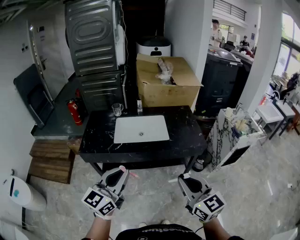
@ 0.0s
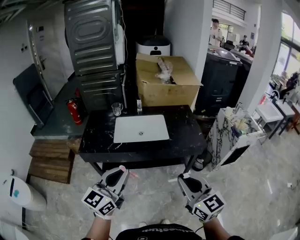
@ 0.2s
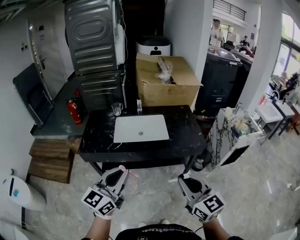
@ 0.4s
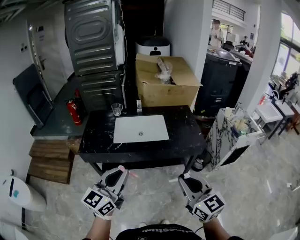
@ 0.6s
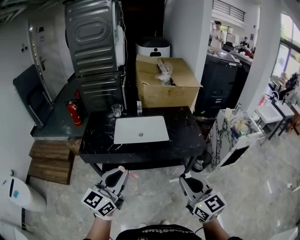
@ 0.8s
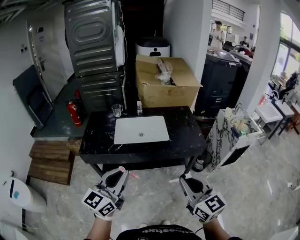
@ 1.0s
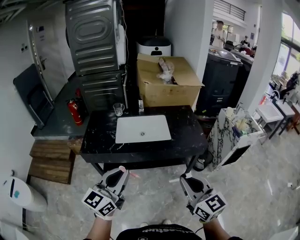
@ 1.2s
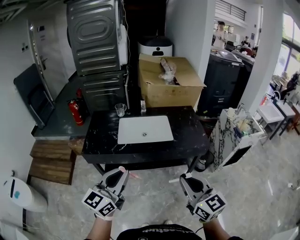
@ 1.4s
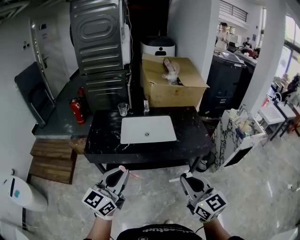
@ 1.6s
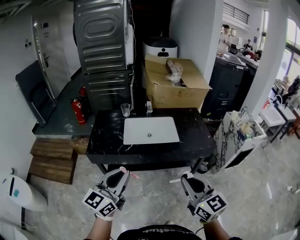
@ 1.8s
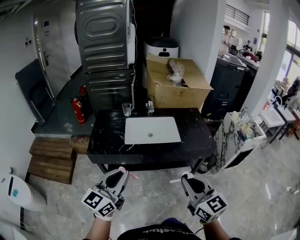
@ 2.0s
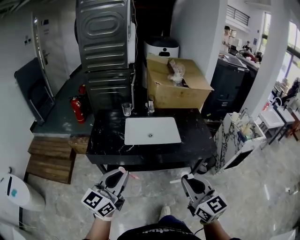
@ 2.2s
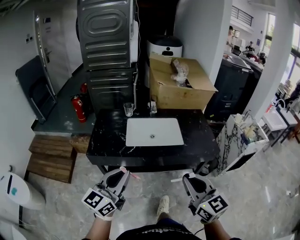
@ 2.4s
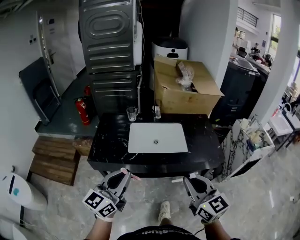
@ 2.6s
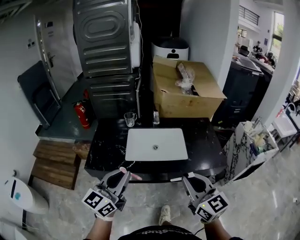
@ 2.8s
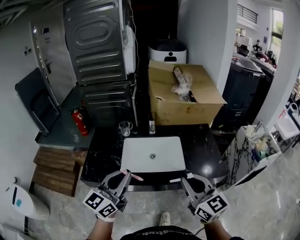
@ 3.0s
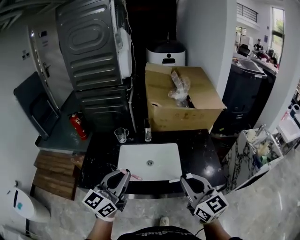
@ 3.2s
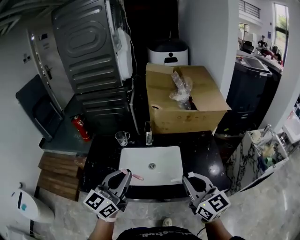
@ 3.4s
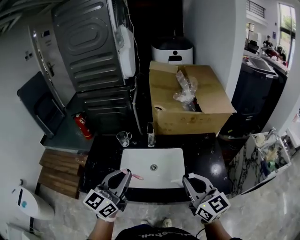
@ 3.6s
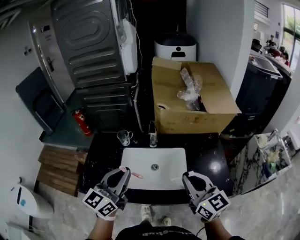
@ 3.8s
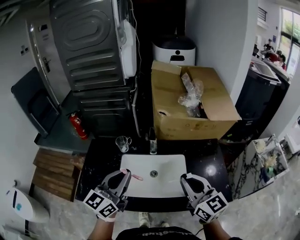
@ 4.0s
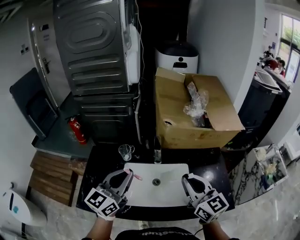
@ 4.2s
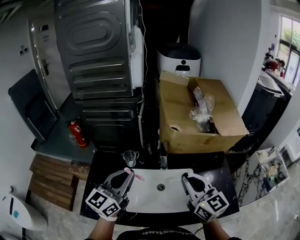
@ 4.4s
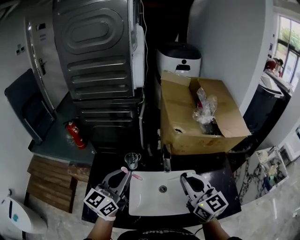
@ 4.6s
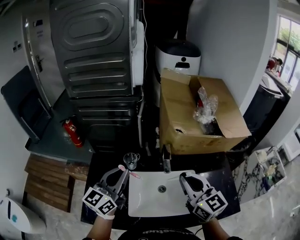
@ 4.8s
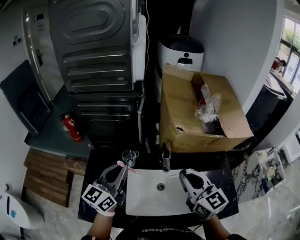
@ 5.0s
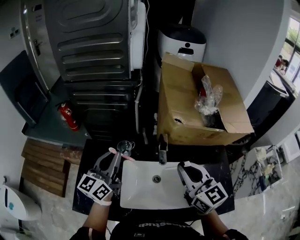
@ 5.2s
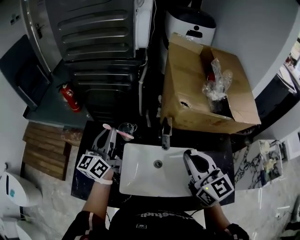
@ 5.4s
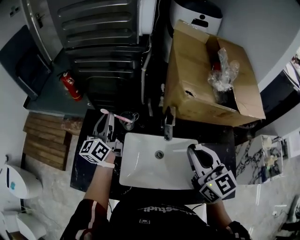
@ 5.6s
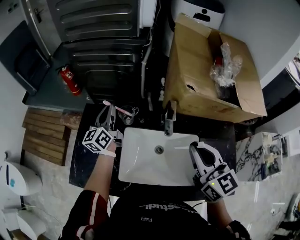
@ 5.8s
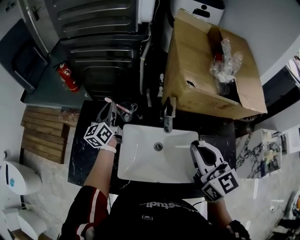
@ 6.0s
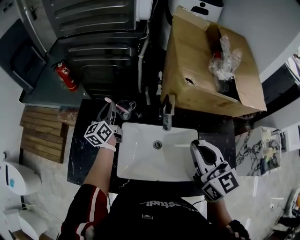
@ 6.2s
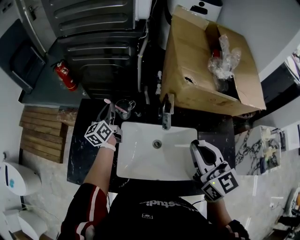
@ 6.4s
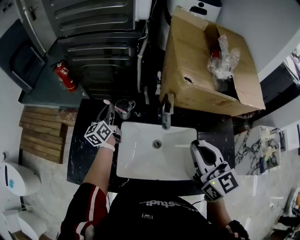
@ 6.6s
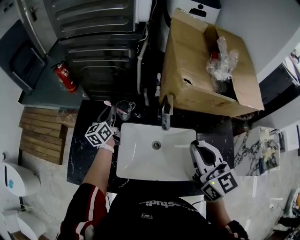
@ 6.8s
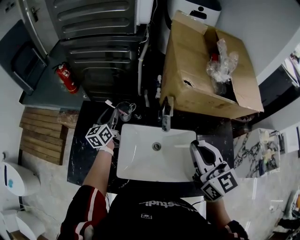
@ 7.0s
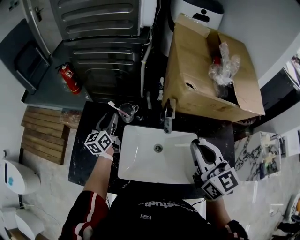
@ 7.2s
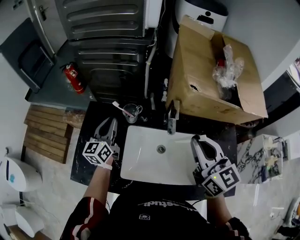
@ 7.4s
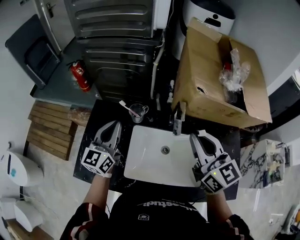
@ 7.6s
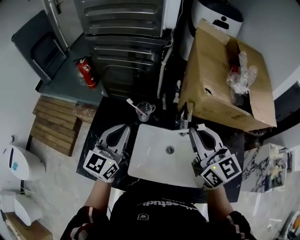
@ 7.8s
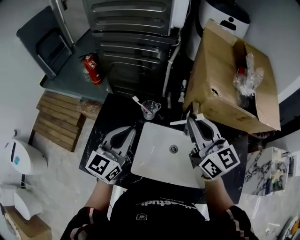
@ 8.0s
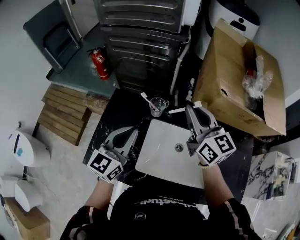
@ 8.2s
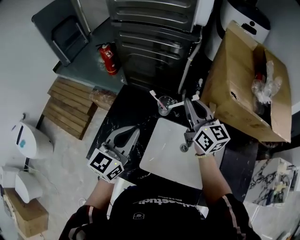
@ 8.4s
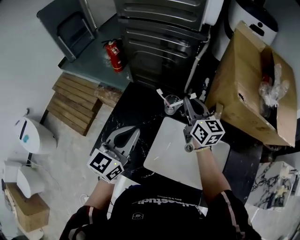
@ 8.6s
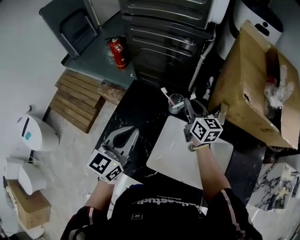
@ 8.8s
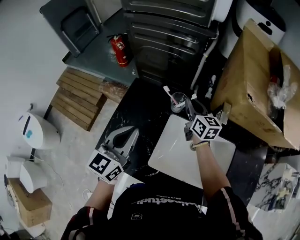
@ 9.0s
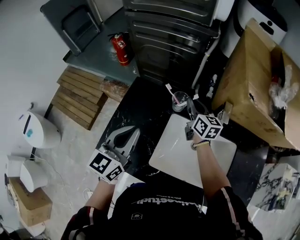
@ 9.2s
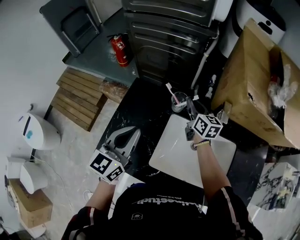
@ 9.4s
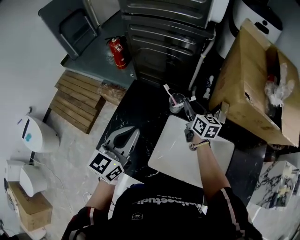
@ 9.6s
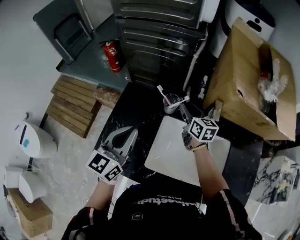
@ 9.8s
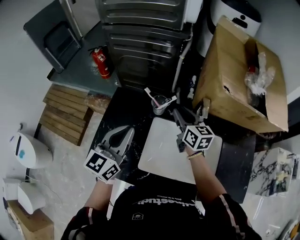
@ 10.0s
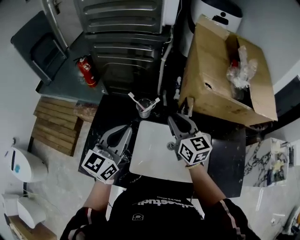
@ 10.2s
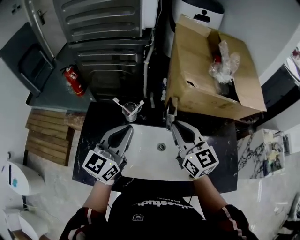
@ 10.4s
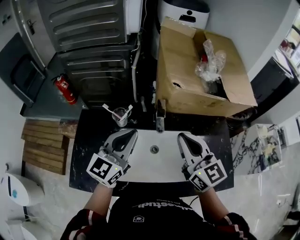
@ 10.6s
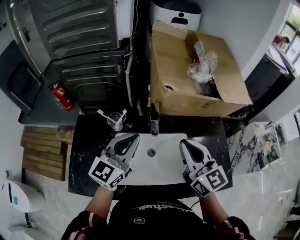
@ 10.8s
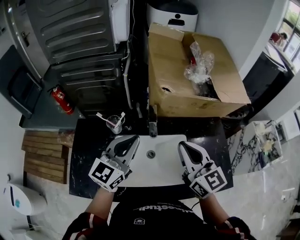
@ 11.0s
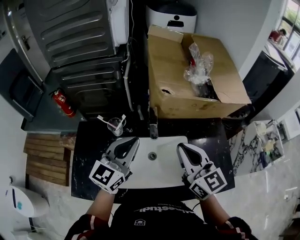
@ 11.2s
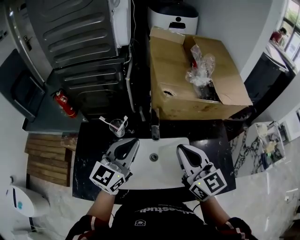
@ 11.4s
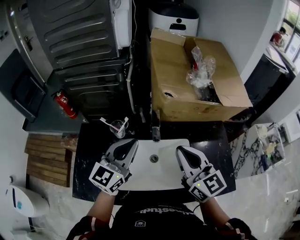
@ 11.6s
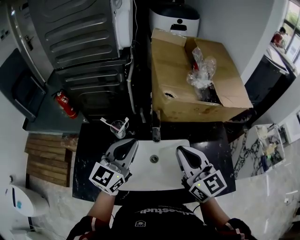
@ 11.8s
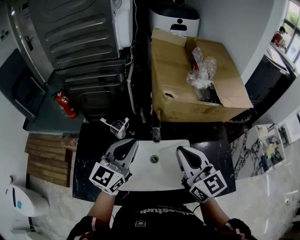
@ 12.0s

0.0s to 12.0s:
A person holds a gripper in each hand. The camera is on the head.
0.0s to 1.6s: The grippers both shift to the left by roughly 5 cm.
1.6s to 3.0s: Both grippers travel together forward, approximately 25 cm.
3.0s to 4.4s: The grippers both shift forward by some 30 cm.
4.4s to 6.0s: The right gripper shifts about 10 cm forward and downward. Meanwhile the left gripper is displaced forward and downward by some 30 cm, and turns by some 30 degrees.
6.0s to 7.6s: The left gripper is displaced backward and upward by some 15 cm, rotates about 20 degrees, and opens, then closes once more. The right gripper moves roughly 5 cm.
7.6s to 9.0s: The left gripper heads to the left and backward, covering some 10 cm. The right gripper heads forward, downward and to the left, covering about 30 cm.
9.0s to 10.4s: The right gripper heads backward, upward and to the right, covering some 25 cm, turns by roughly 20 degrees, and opens and closes again, while the left gripper shifts some 15 cm to the right.
10.4s to 12.0s: The left gripper goes about 10 cm to the right, while the right gripper shifts roughly 10 cm to the right and backward.

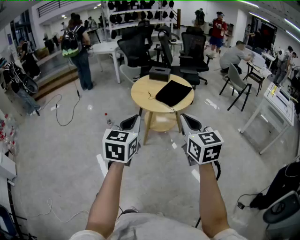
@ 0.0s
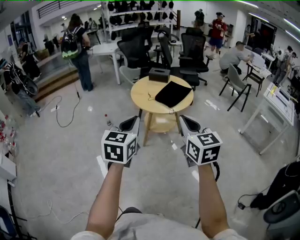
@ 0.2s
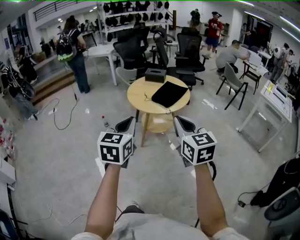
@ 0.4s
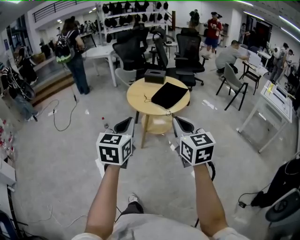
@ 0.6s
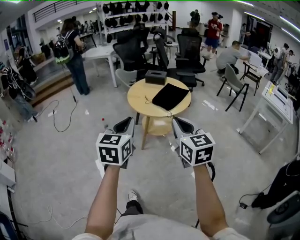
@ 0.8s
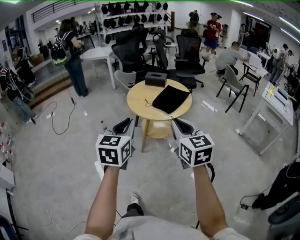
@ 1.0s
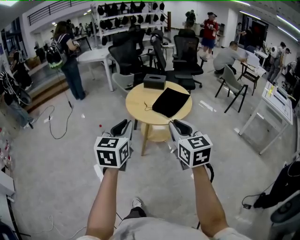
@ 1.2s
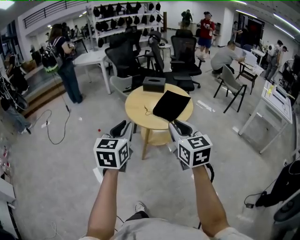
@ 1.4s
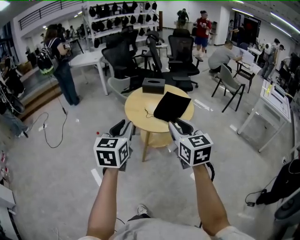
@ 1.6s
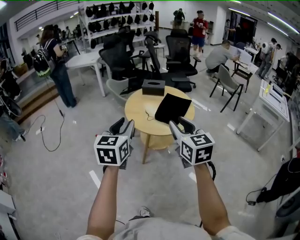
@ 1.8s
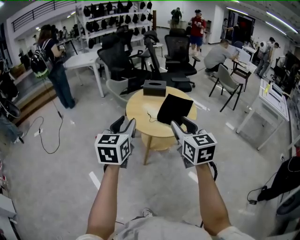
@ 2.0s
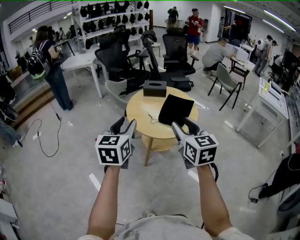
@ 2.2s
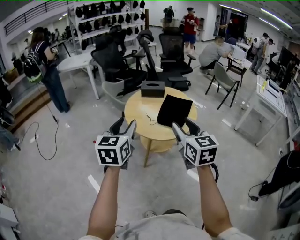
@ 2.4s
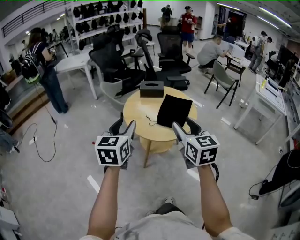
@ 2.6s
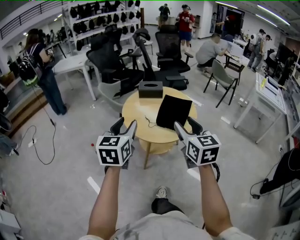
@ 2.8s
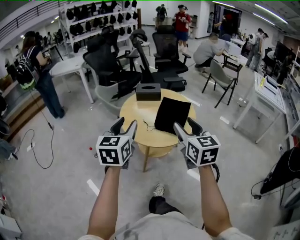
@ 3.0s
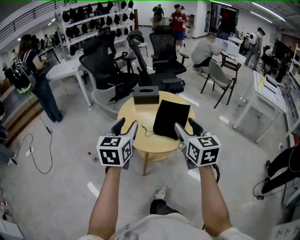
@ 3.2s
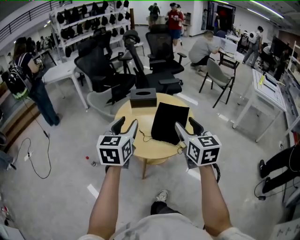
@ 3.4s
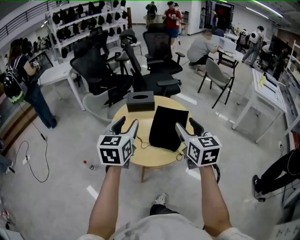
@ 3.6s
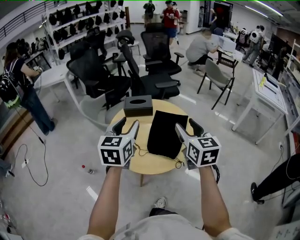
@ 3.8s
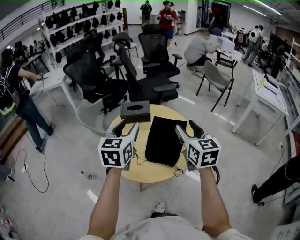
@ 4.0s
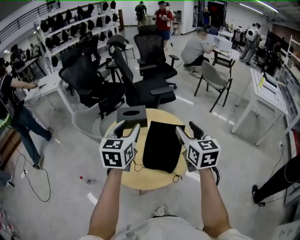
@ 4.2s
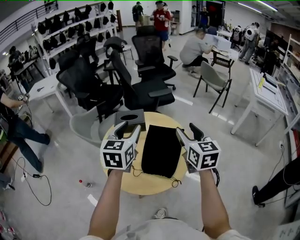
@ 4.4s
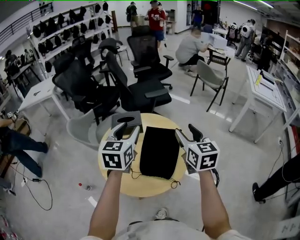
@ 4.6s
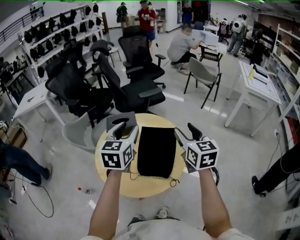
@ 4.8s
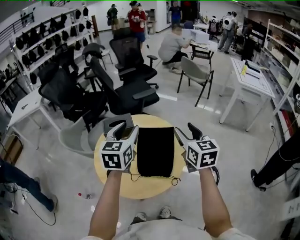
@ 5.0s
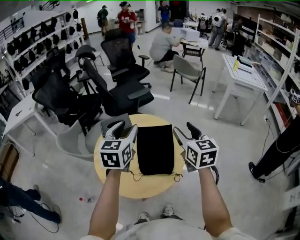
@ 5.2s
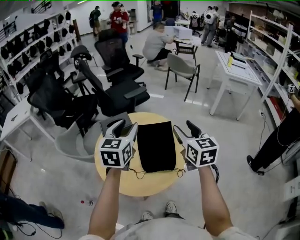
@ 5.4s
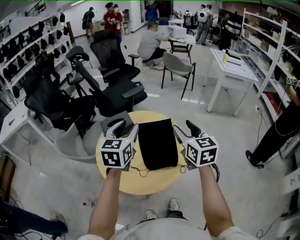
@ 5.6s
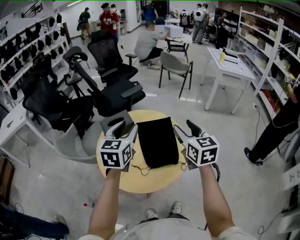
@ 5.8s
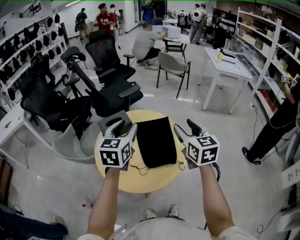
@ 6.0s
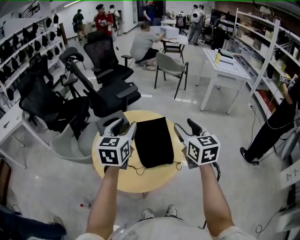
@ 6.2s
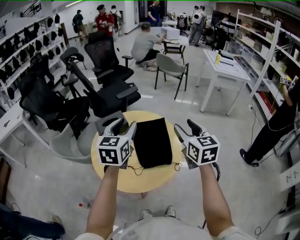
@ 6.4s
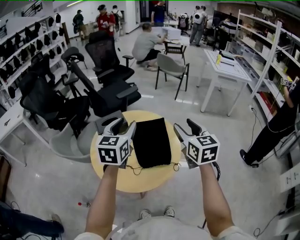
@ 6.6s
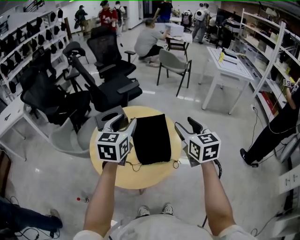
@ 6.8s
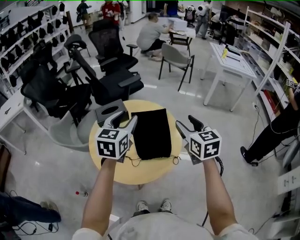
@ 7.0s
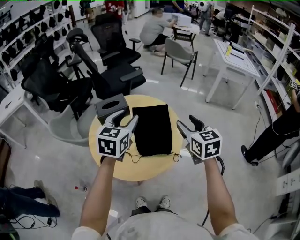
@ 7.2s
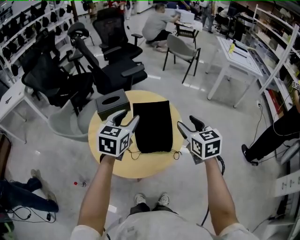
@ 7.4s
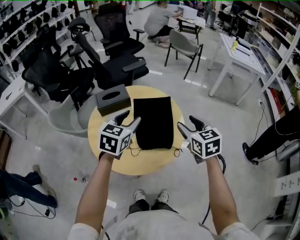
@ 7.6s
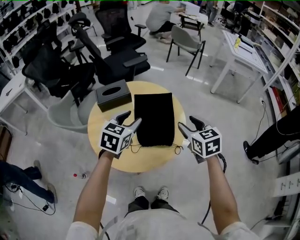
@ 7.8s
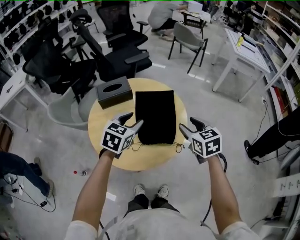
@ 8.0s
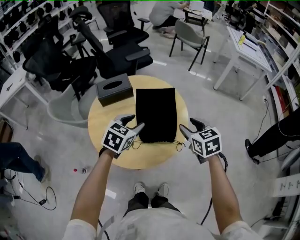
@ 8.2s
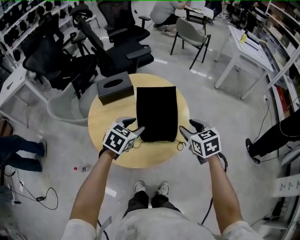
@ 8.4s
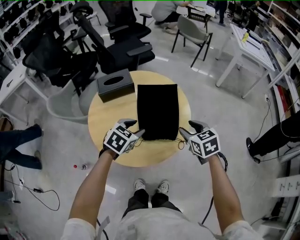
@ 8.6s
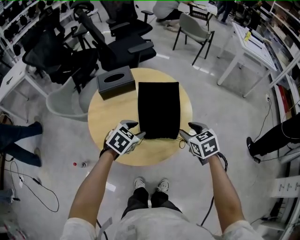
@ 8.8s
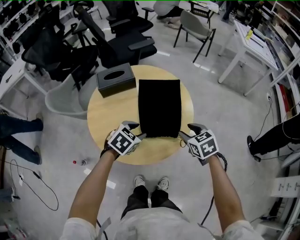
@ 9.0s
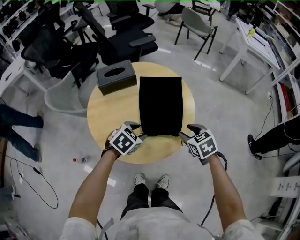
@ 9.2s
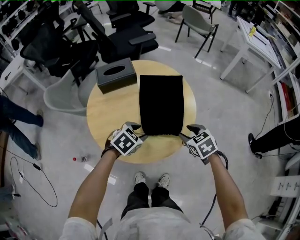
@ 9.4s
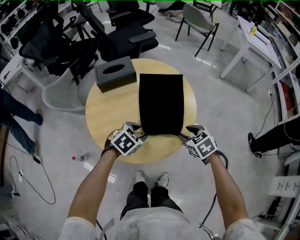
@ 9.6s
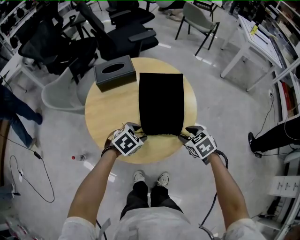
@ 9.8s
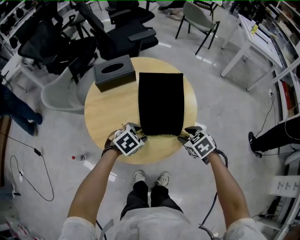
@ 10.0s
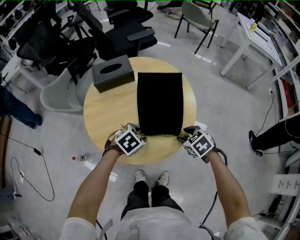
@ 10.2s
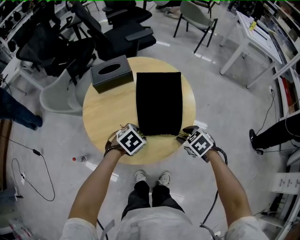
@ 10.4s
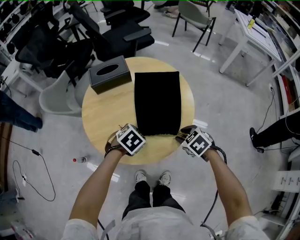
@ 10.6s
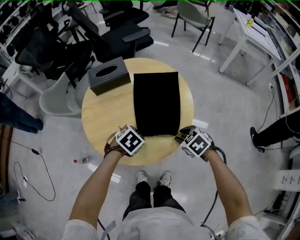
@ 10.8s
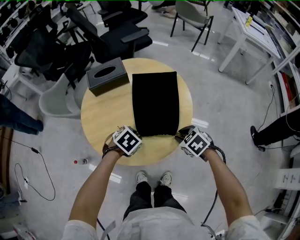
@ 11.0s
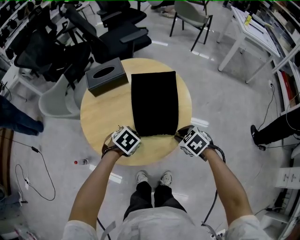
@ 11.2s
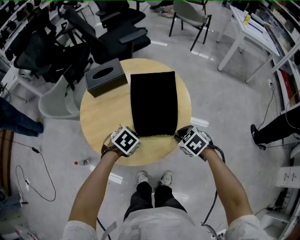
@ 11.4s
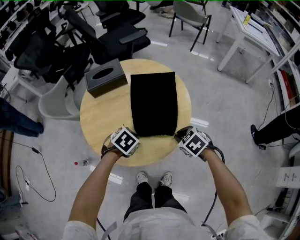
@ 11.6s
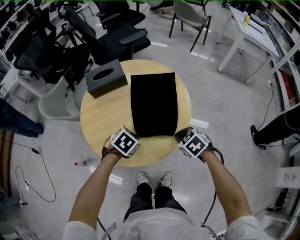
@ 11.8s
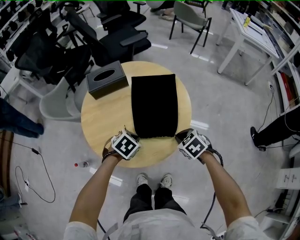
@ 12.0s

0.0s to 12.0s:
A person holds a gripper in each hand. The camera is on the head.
0.0s to 1.6s: The two grippers go roughly 20 cm forward and to the left. The left gripper opens its fingers, while the right gripper opens up.
1.6s to 3.0s: The grippers both shift forward by some 15 cm. The left gripper opens its fingers, while the right gripper opens up.
3.0s to 4.4s: Both grippers travel together forward, some 30 cm.
4.4s to 6.0s: The right gripper shifts some 5 cm backward, and turns by roughly 20 degrees, while the left gripper rotates about 20 degrees.
6.0s to 7.6s: The two grippers go about 10 cm downward.
7.6s to 9.0s: The grippers both shift downward by roughly 15 cm. The left gripper changes its angle by roughly 30 degrees, while the right gripper rotates some 20 degrees.
9.0s to 10.4s: The grippers both shift downward by approximately 10 cm. The right gripper changes its angle by about 20 degrees.
10.4s to 12.0s: The left gripper closes its fingers; the right gripper closes up.
